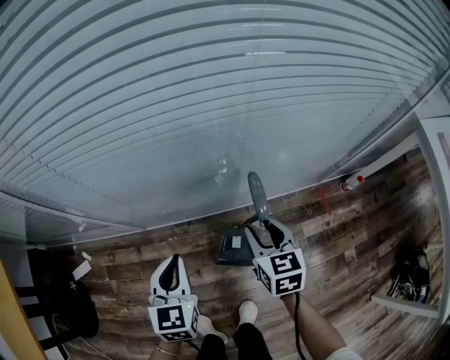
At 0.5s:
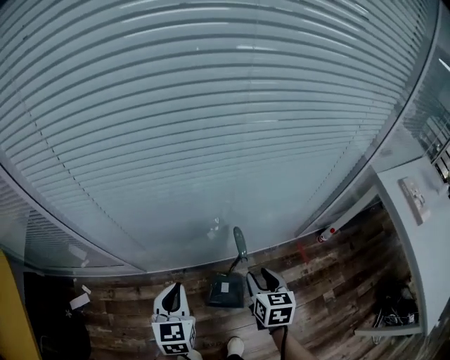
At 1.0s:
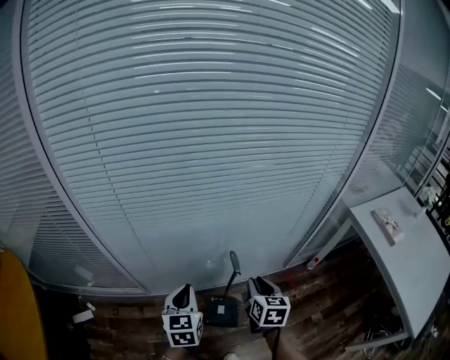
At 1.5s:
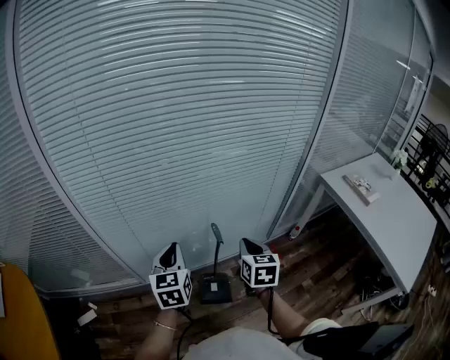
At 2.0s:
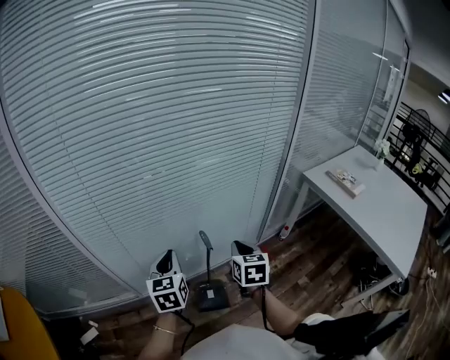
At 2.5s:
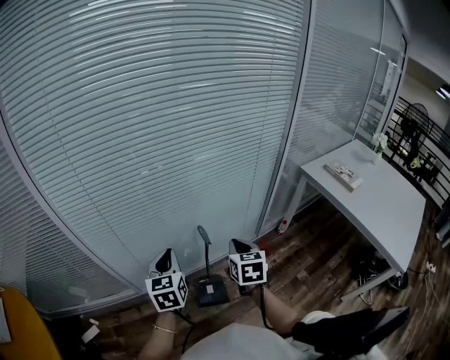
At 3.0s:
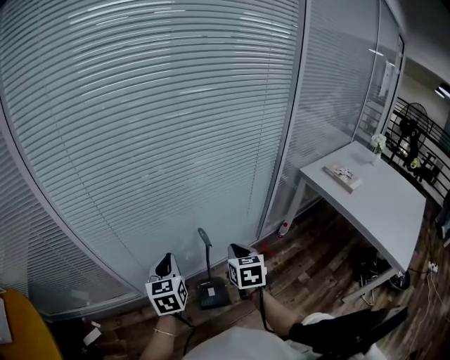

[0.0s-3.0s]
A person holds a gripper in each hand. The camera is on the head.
0.0s to 1.5s: Both grippers travel together upward, approximately 30 cm. The right gripper turns by approximately 20 degrees, and closes its fingers.
1.5s to 3.0s: The grippers make only small movements.

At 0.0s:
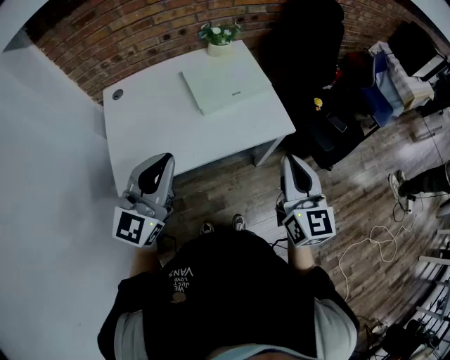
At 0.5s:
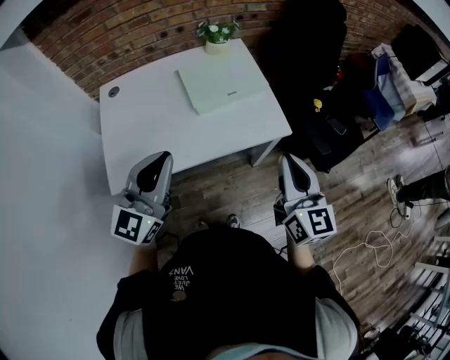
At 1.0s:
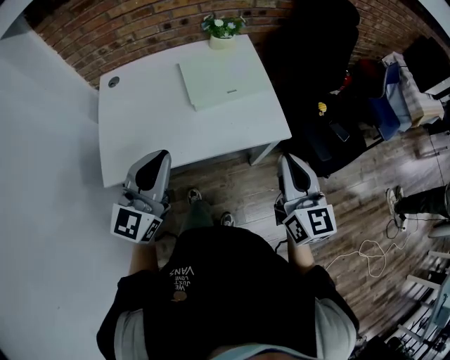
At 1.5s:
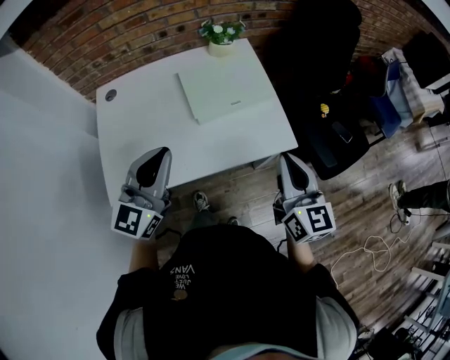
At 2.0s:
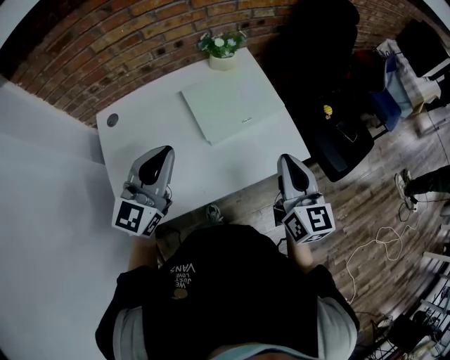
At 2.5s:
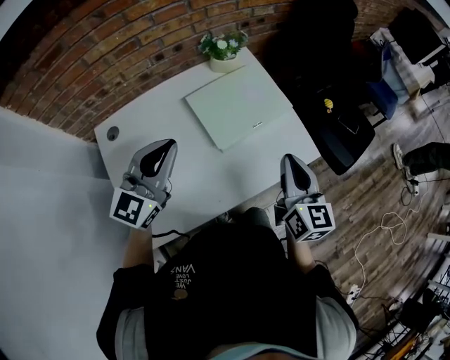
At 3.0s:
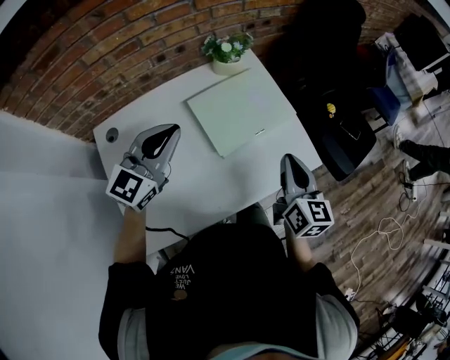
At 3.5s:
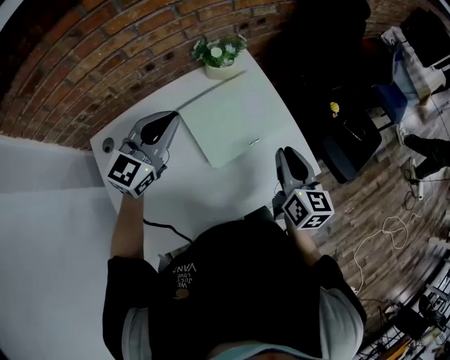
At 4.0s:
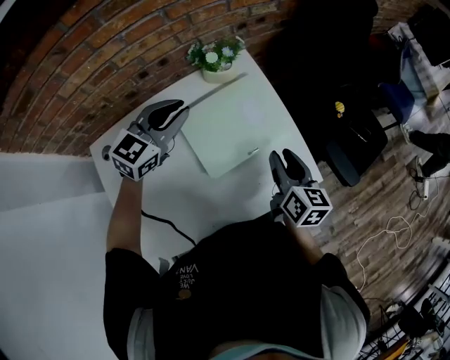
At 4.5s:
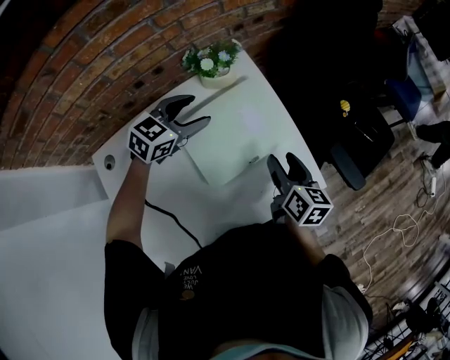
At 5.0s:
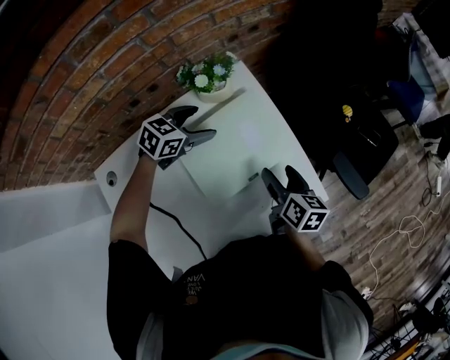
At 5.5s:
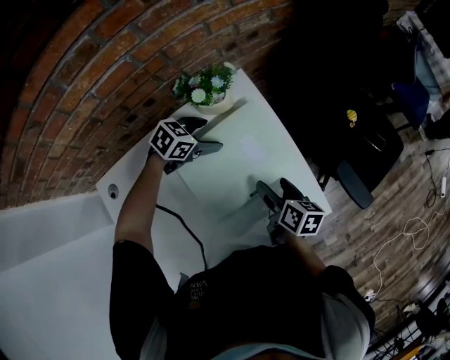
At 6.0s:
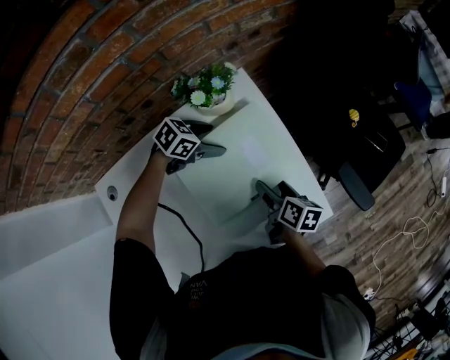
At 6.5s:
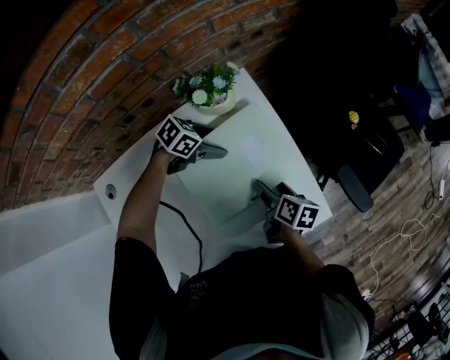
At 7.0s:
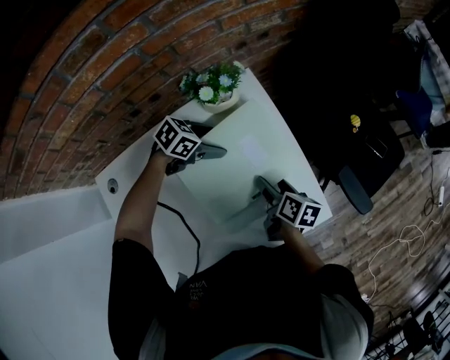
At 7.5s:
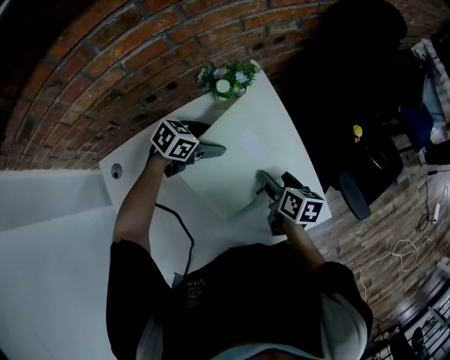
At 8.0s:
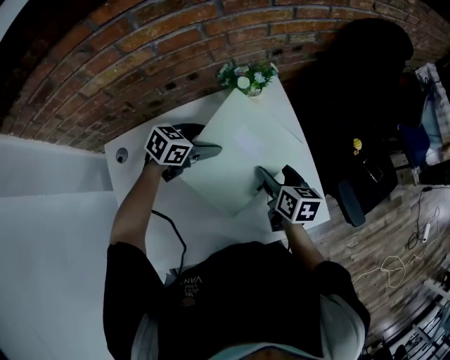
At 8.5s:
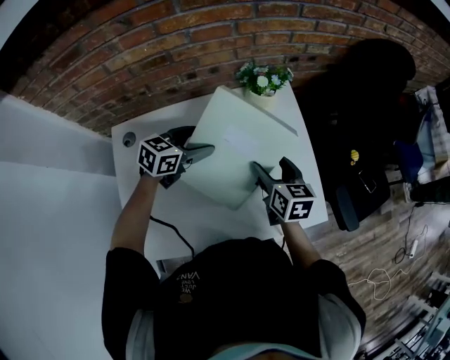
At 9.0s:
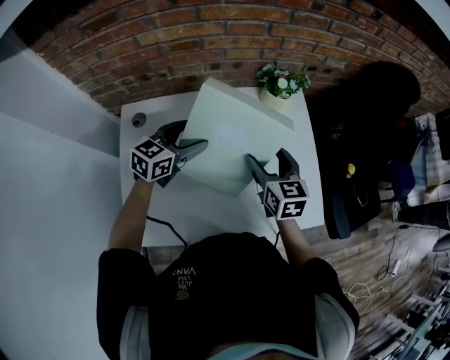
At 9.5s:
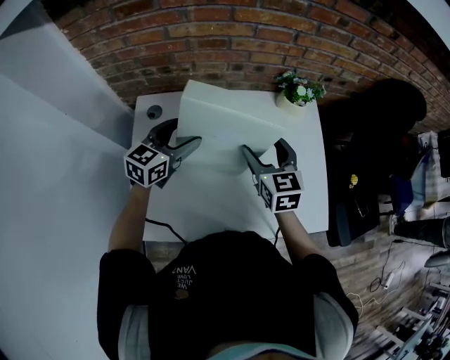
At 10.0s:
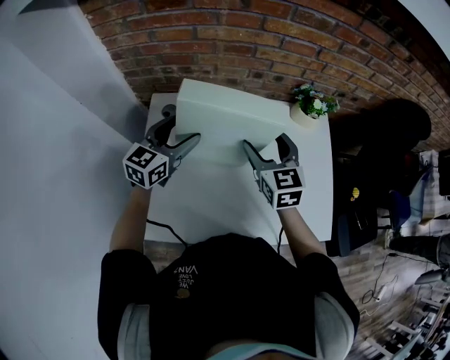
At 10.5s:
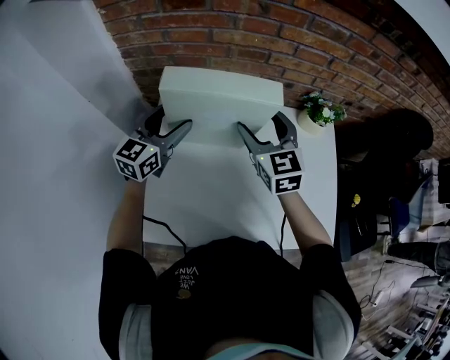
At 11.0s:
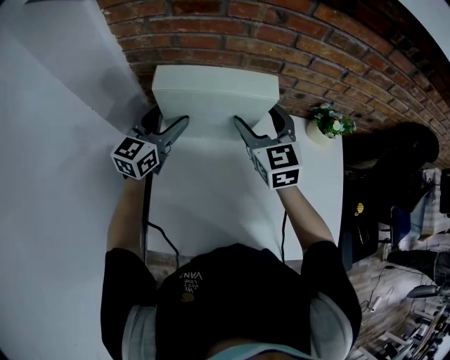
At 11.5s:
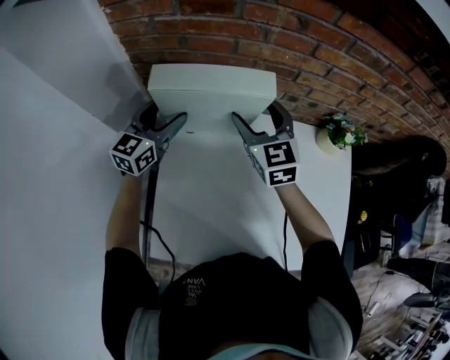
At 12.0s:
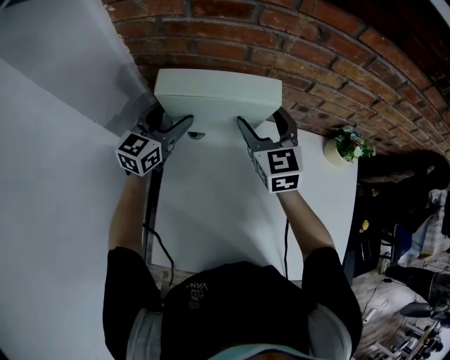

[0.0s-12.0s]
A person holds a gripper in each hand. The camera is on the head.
0.0s to 2.0s: Both grippers travel together forward, some 15 cm.
2.0s to 4.0s: The right gripper shifts about 20 cm forward and downward, turns by some 20 degrees, and opens, while the left gripper goes some 25 cm forward, and turns by about 30 degrees.
4.0s to 6.0s: The right gripper is displaced downward by approximately 15 cm, swivels approximately 30 degrees, and opens up. Meanwhile the left gripper shifts approximately 25 cm downward and forward, changes its angle by some 50 degrees, and opens.
6.0s to 8.0s: The right gripper shifts approximately 10 cm upward, and swivels roughly 30 degrees. Meanwhile the left gripper moves about 15 cm, and rotates roughly 20 degrees.
8.0s to 10.0s: The right gripper changes place by roughly 30 cm, and twists roughly 50 degrees counterclockwise, seen from behind. The left gripper moves about 30 cm, and swivels roughly 50 degrees.
10.0s to 12.0s: The left gripper is displaced to the left and forward by roughly 20 cm. Meanwhile the right gripper travels forward and to the left by roughly 20 cm.

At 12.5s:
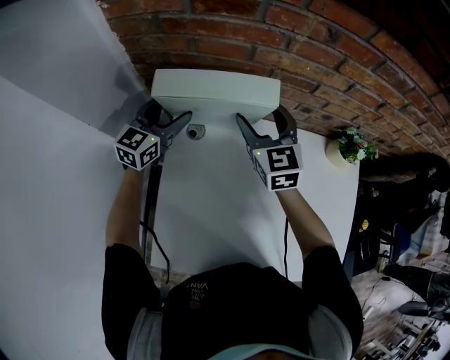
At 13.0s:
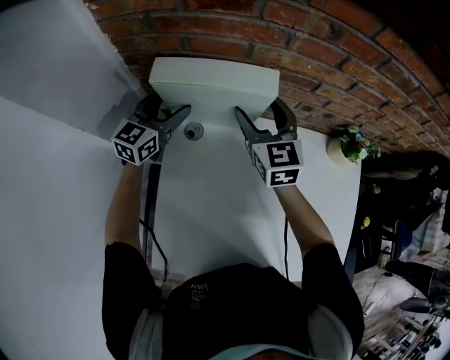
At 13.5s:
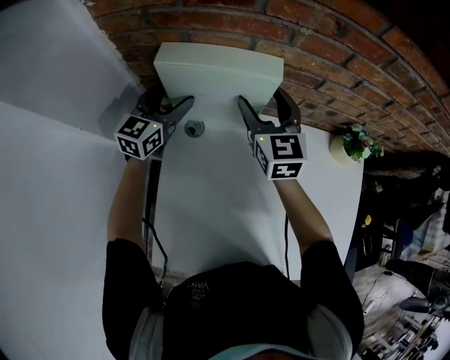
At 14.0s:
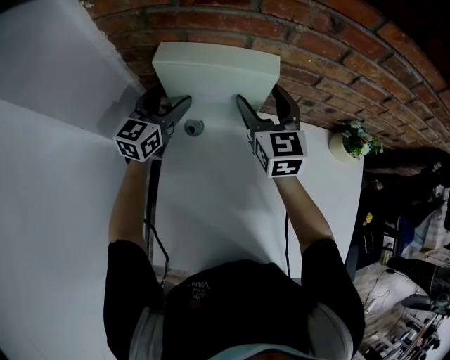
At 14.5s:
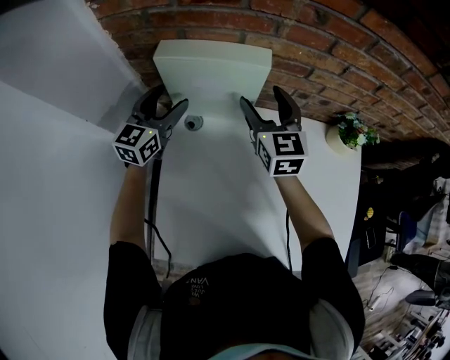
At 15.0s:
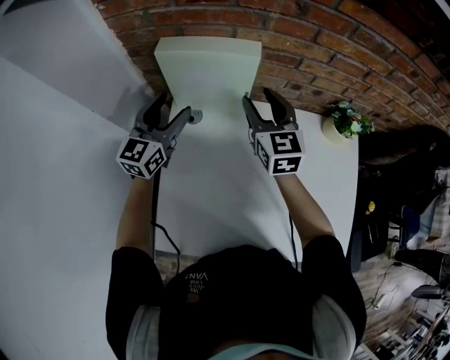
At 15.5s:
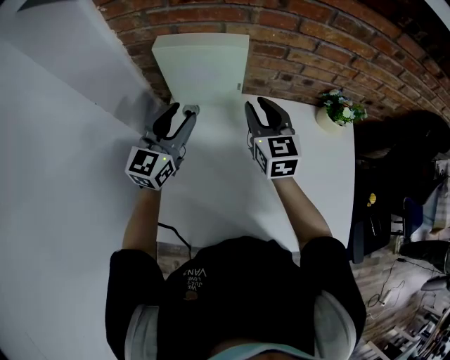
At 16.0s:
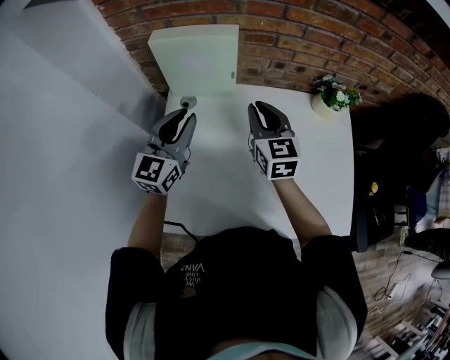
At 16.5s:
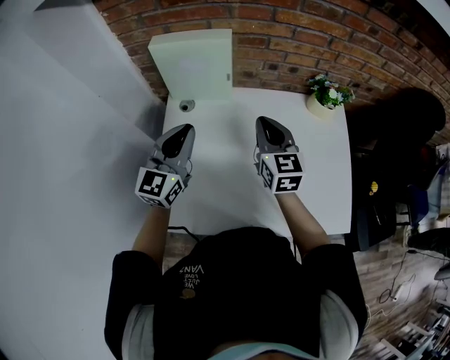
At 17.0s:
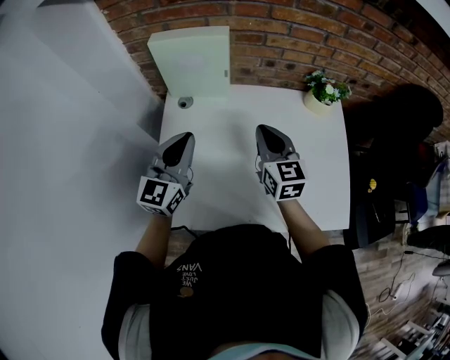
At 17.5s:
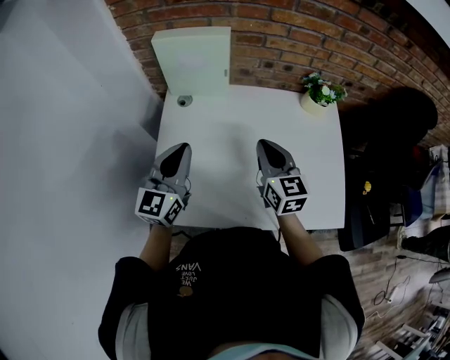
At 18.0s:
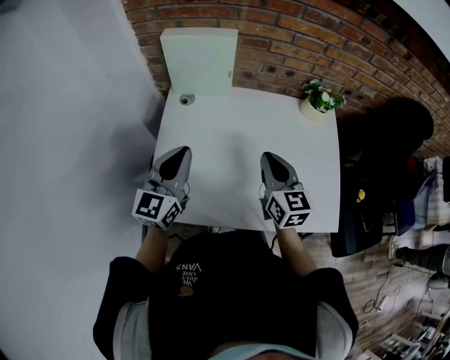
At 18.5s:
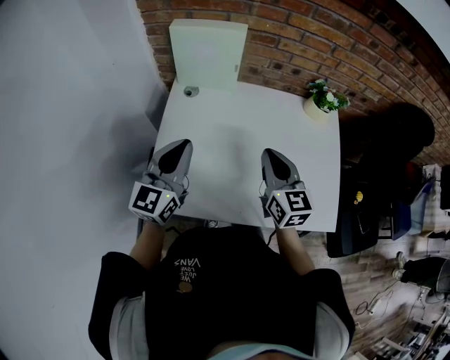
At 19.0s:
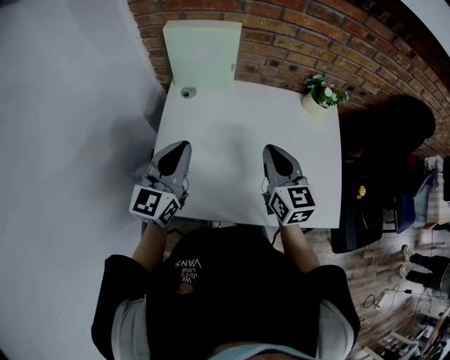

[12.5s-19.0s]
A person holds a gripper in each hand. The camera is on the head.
12.5s to 14.5s: The grippers stay close to where they were, moving slightly.
14.5s to 17.0s: The grippers both shift backward and to the right by some 25 cm. The right gripper closes its fingers, while the left gripper closes its fingers.
17.0s to 19.0s: Both grippers move backward, approximately 10 cm.

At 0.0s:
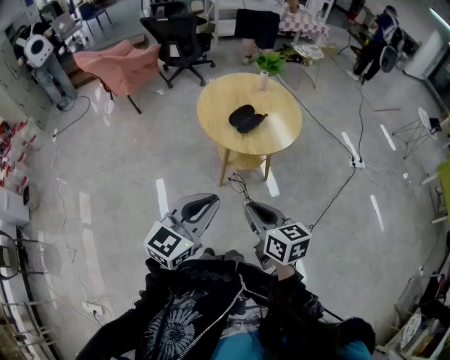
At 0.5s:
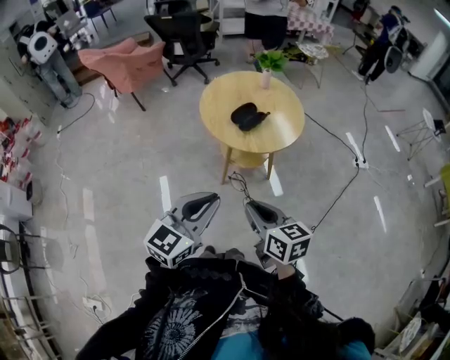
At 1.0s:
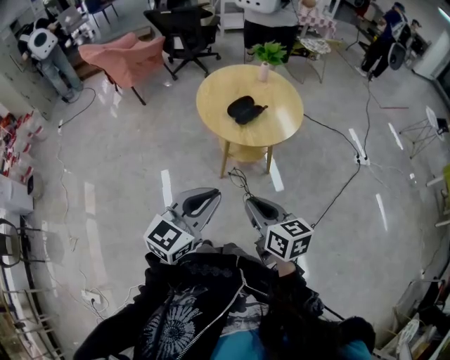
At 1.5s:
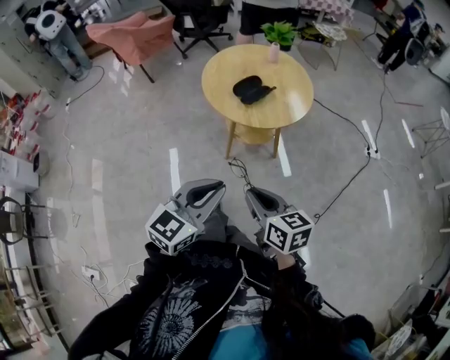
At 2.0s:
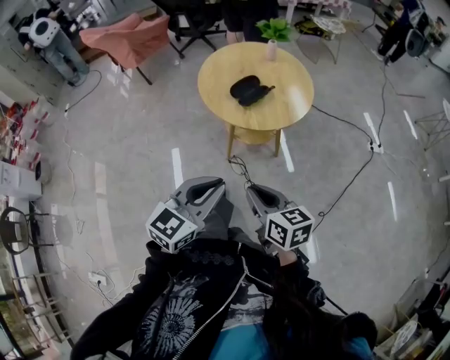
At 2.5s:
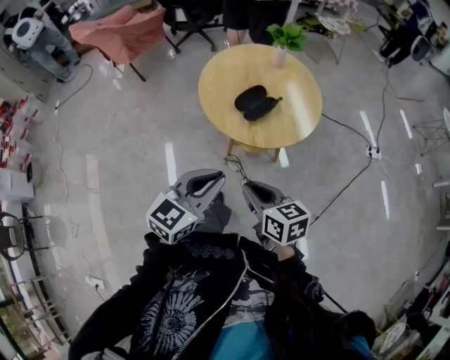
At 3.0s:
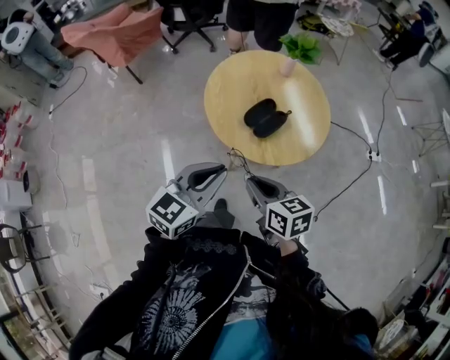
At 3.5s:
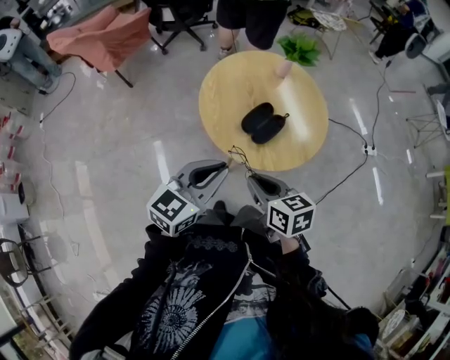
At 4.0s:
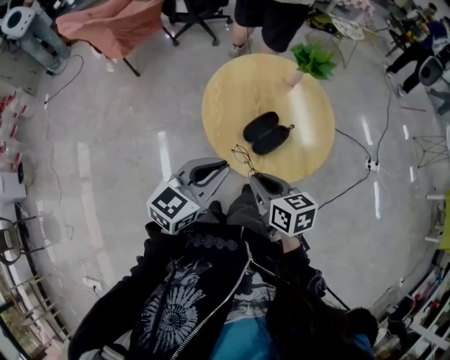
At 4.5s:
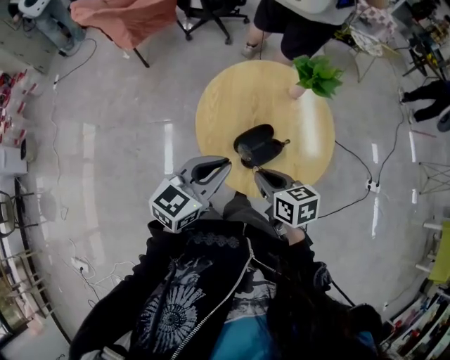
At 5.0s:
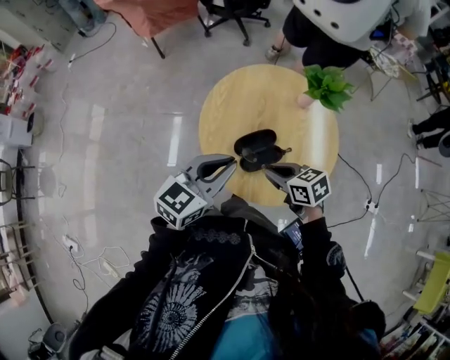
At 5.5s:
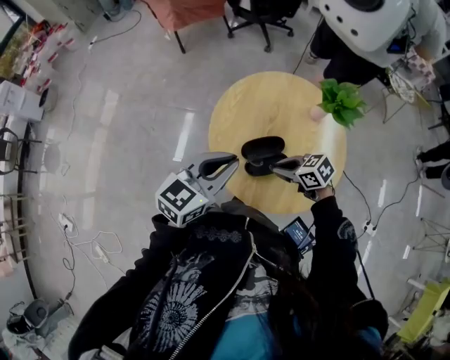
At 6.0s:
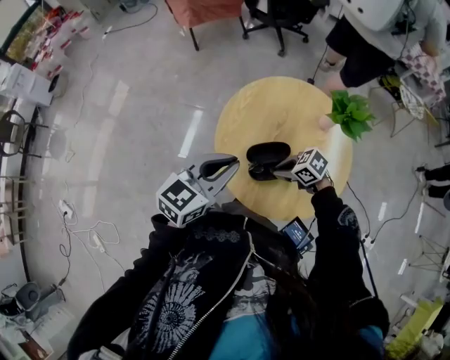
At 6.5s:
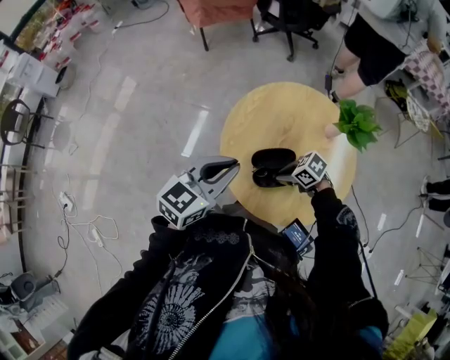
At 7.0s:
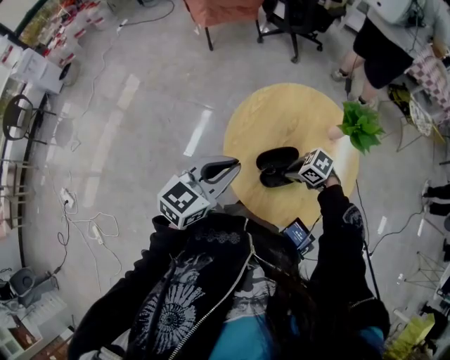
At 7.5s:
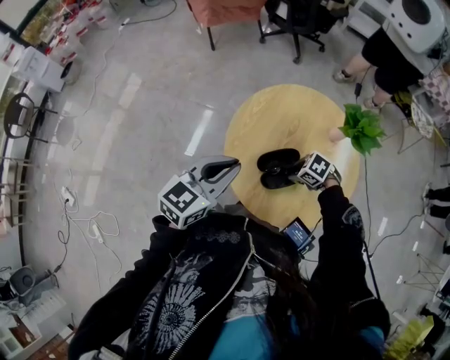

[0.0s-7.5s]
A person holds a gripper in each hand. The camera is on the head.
0.0s to 2.0s: The grippers both shift to the right by about 5 cm.
2.0s to 4.0s: Both grippers travel together forward, about 30 cm.
4.0s to 5.5s: The left gripper moves approximately 10 cm, and rotates approximately 20 degrees, while the right gripper shifts by some 20 cm, and swivels approximately 60 degrees.
5.5s to 7.5s: The right gripper is displaced downward by some 5 cm, changes its angle by approximately 30 degrees, and opens up.
